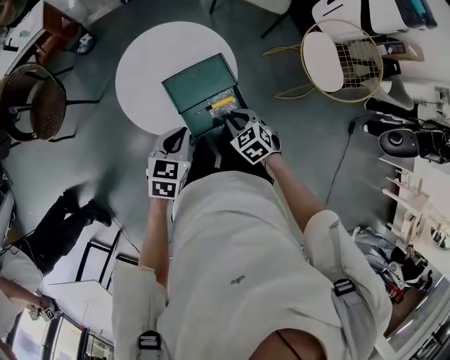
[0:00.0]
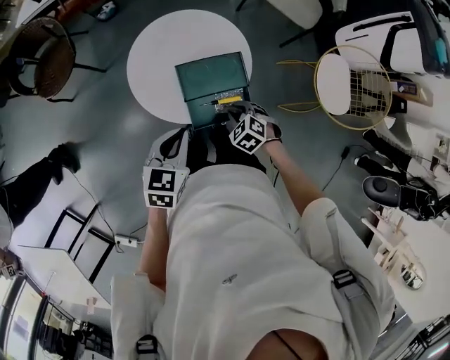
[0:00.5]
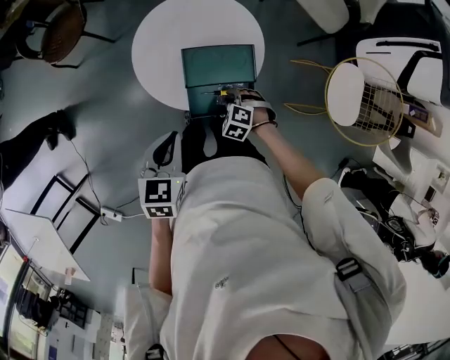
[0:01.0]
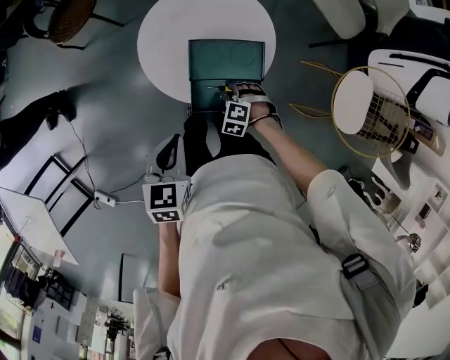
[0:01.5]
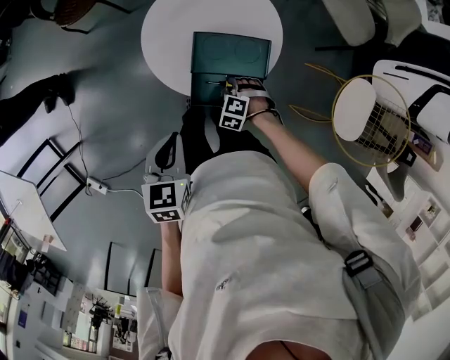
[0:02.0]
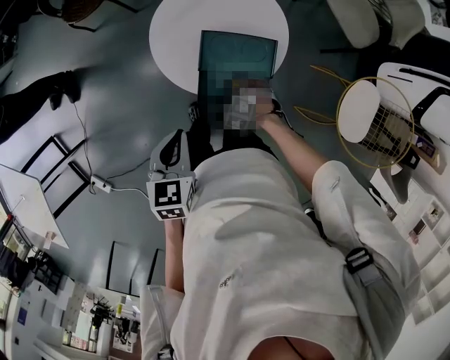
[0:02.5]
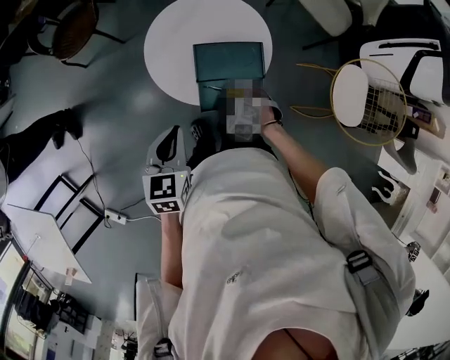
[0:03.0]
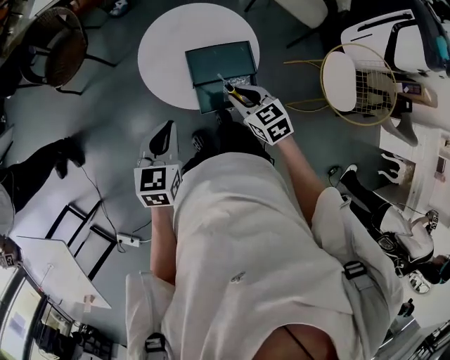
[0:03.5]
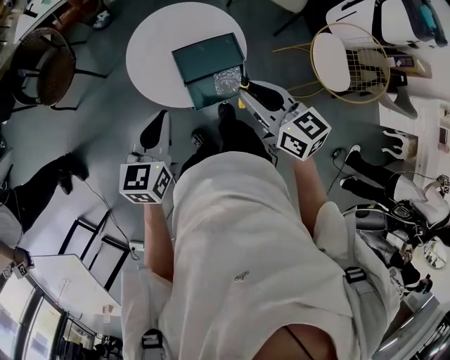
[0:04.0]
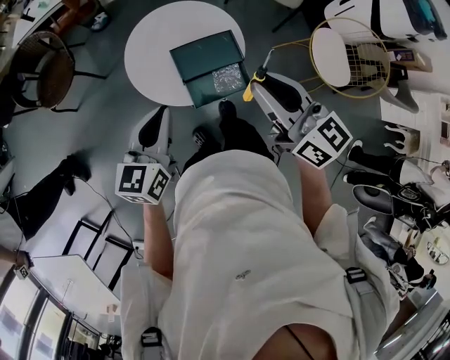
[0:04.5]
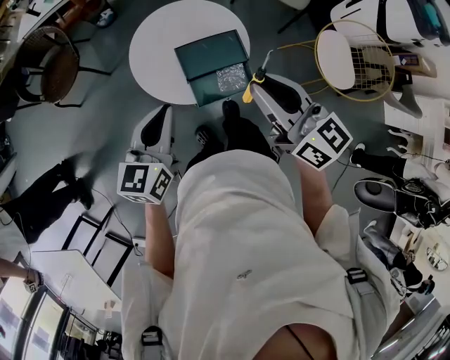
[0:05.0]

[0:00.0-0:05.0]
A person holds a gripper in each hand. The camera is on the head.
0:00.0 to 0:02.5: The right gripper heads downward, covering roughly 15 cm, and twists about 60 degrees counterclockwise, seen from behind; the left gripper moves approximately 10 cm, and rotates about 50 degrees.
0:02.5 to 0:05.0: The left gripper goes some 10 cm upward, and swivels about 40 degrees, while the right gripper moves upward, roughly 40 cm, and points its fingers roughly 70 degrees further upward.

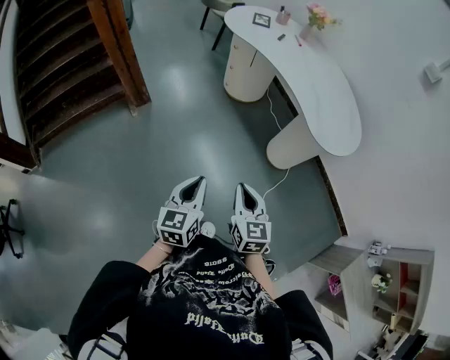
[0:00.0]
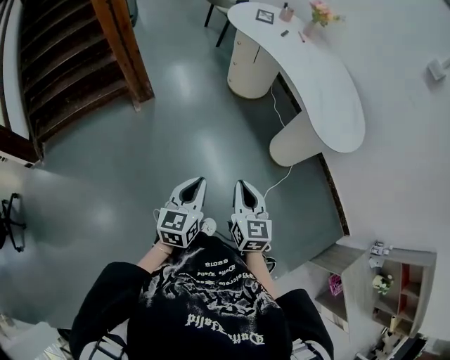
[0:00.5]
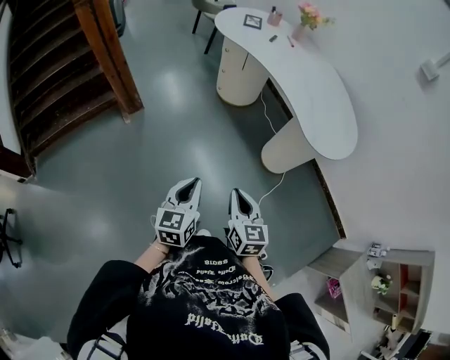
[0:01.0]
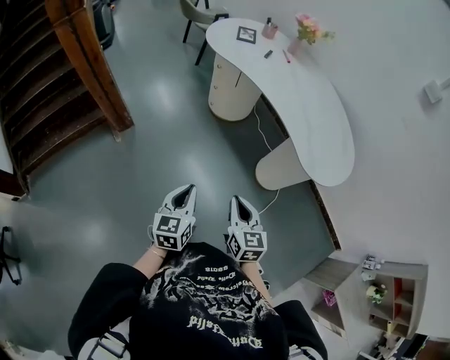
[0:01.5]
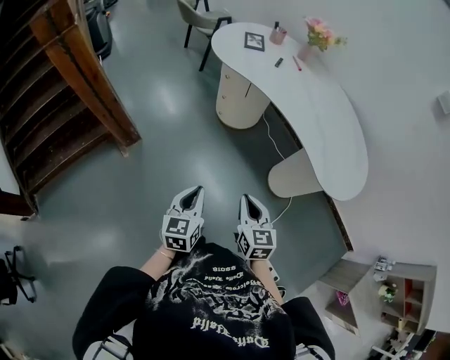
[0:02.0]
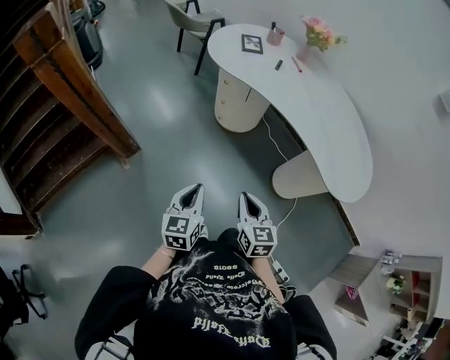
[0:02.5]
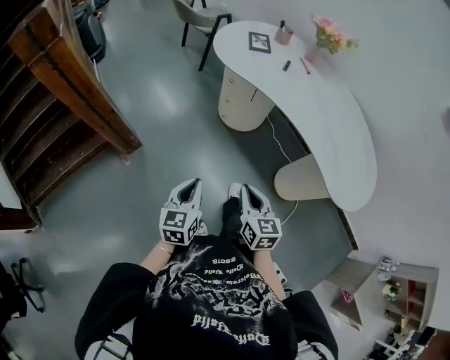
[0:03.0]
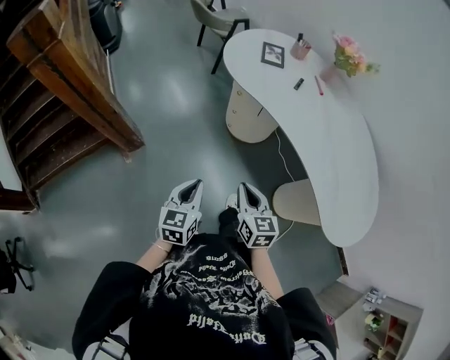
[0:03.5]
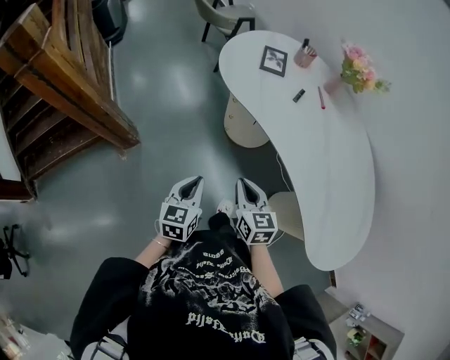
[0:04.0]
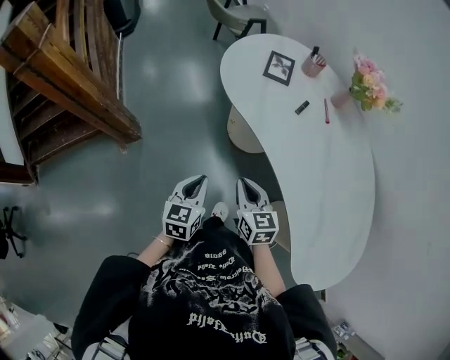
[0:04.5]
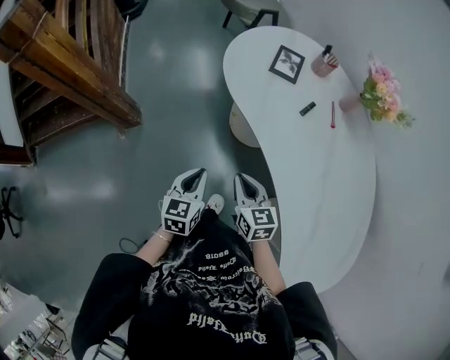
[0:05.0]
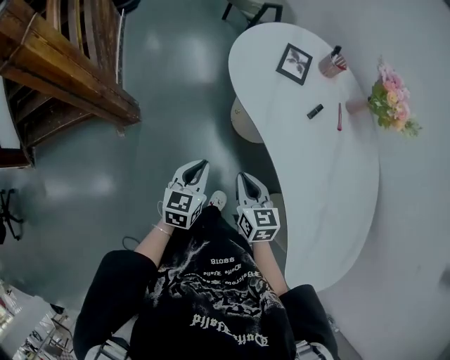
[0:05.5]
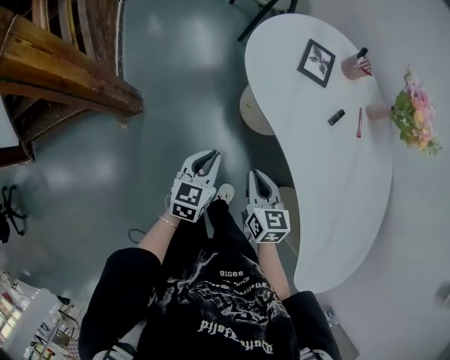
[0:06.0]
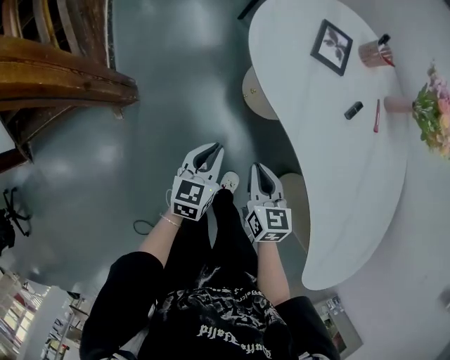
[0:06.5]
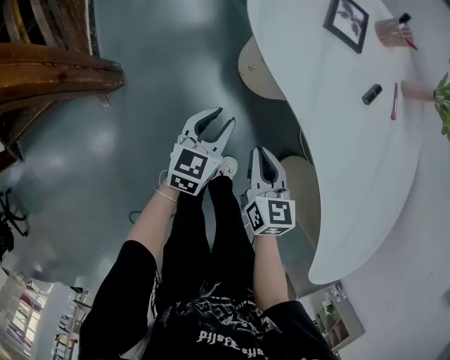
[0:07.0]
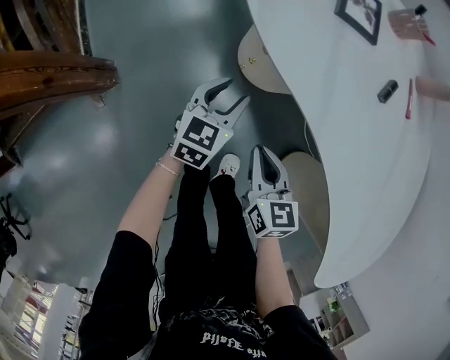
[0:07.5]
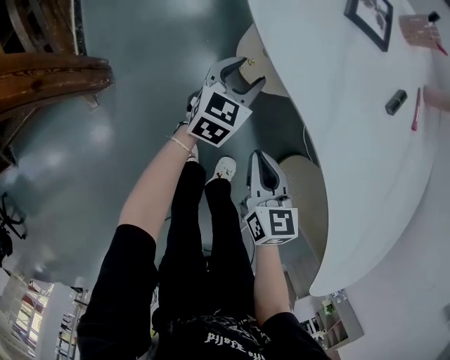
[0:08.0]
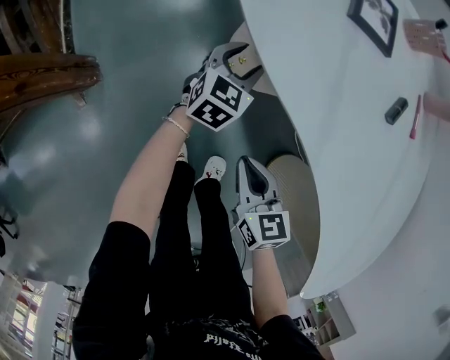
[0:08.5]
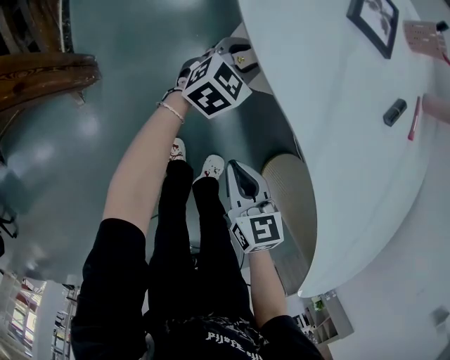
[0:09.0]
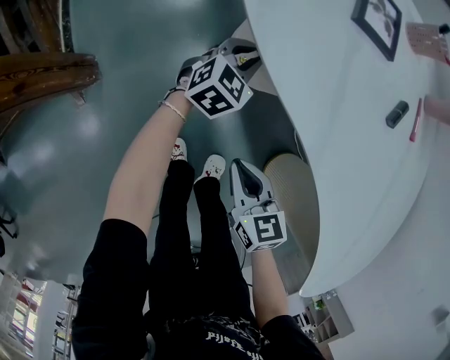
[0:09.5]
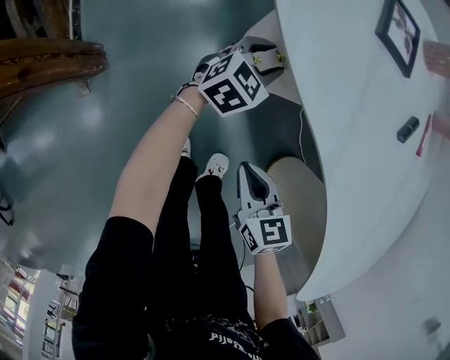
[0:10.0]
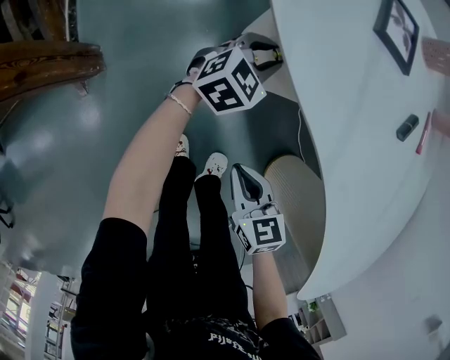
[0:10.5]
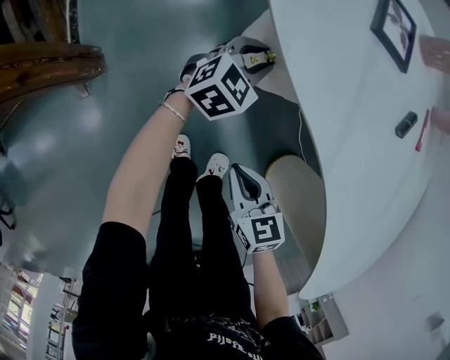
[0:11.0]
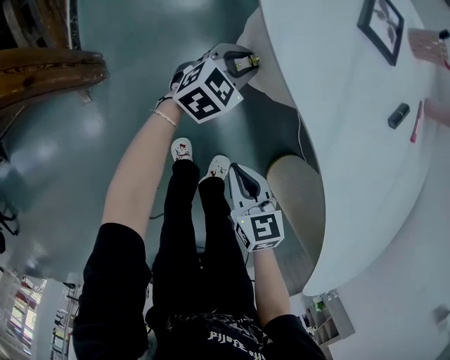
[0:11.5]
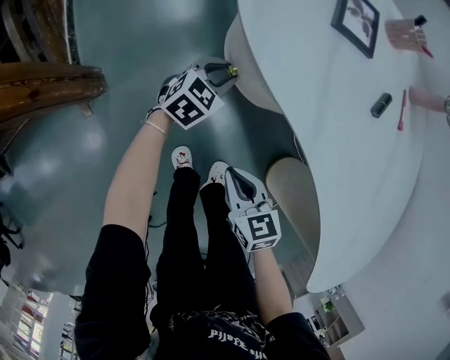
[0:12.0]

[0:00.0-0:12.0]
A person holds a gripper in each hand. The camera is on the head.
0:00.0 to 0:02.0: The two grippers go some 25 cm forward.
0:02.0 to 0:04.0: The two grippers go about 30 cm forward.
0:04.0 to 0:06.0: The grippers both shift forward by about 20 cm.
0:06.0 to 0:08.0: The right gripper shifts about 20 cm downward. Meanwhile the left gripper heads forward and downward, covering some 30 cm, and opens its fingers.
0:08.0 to 0:10.0: The left gripper goes approximately 5 cm forward, and closes, then reopens.
0:10.0 to 0:12.0: The left gripper goes approximately 5 cm to the left.

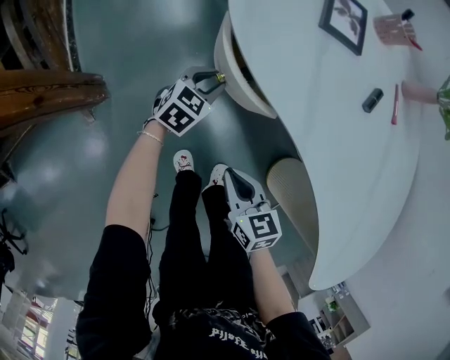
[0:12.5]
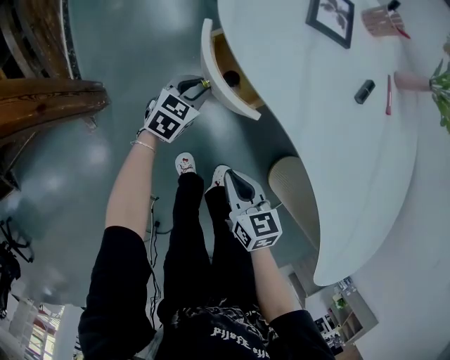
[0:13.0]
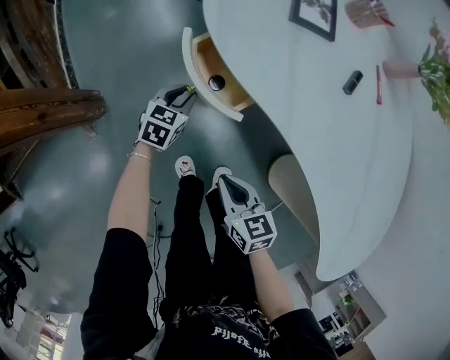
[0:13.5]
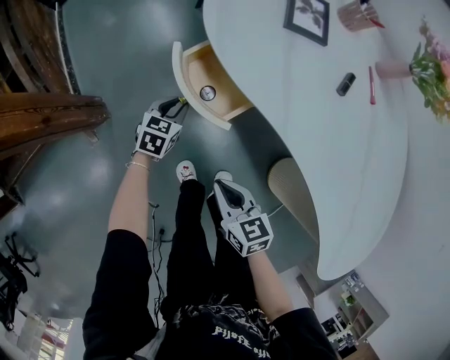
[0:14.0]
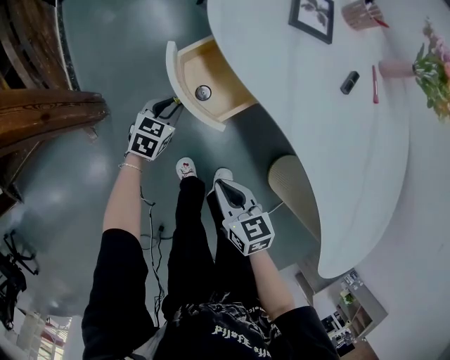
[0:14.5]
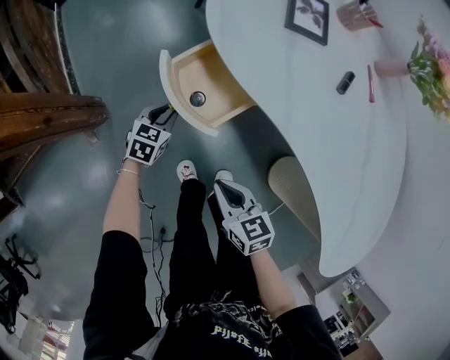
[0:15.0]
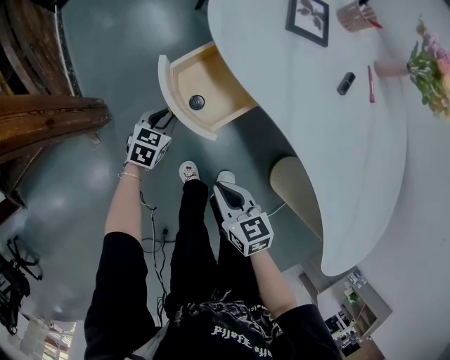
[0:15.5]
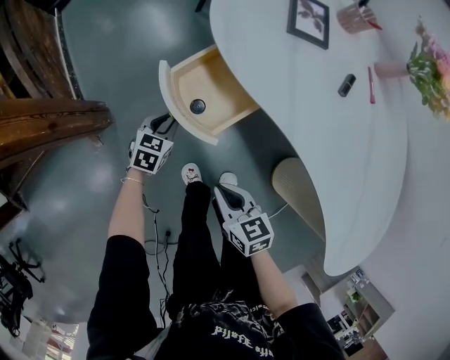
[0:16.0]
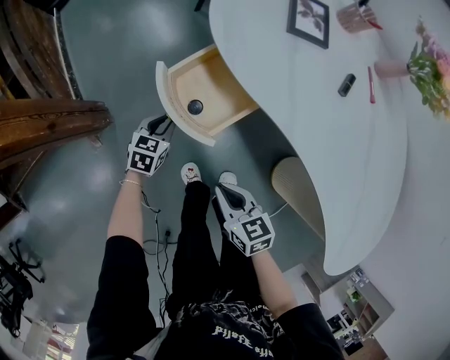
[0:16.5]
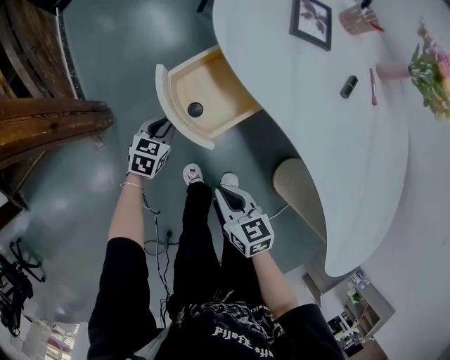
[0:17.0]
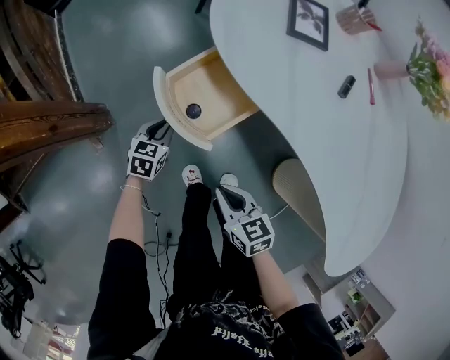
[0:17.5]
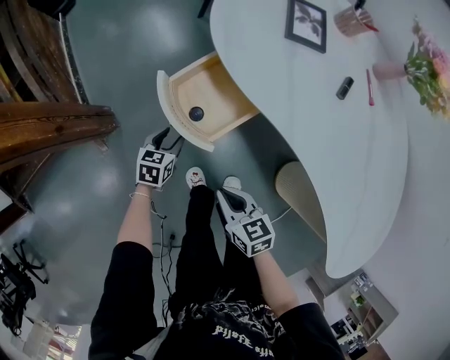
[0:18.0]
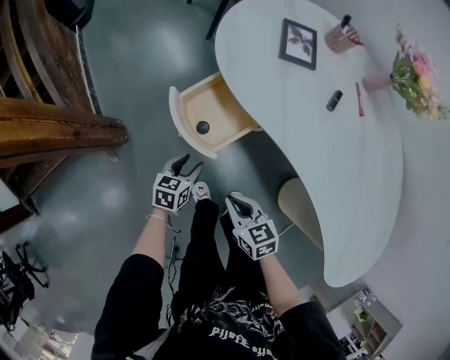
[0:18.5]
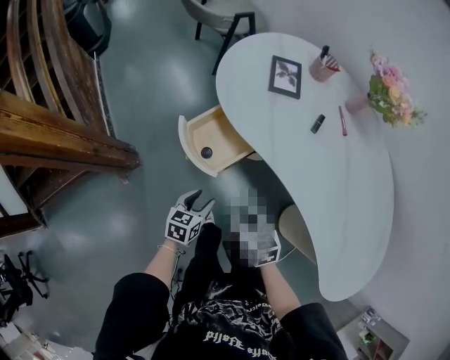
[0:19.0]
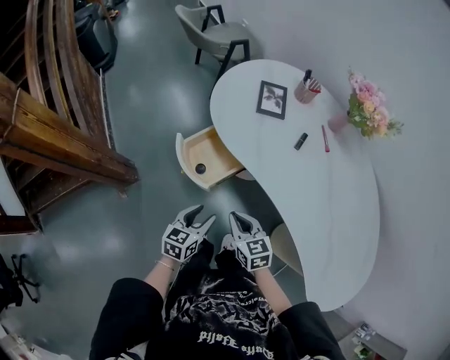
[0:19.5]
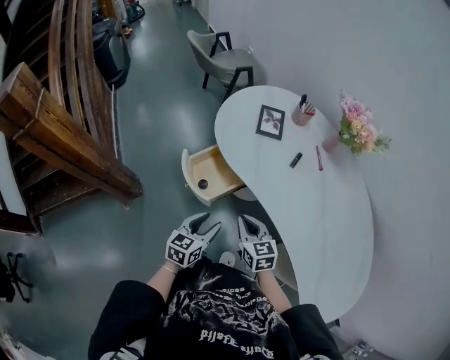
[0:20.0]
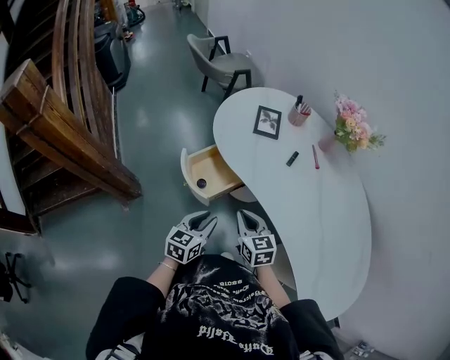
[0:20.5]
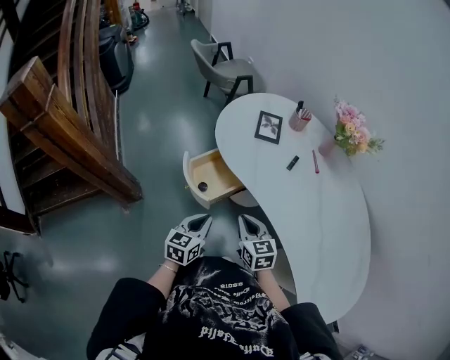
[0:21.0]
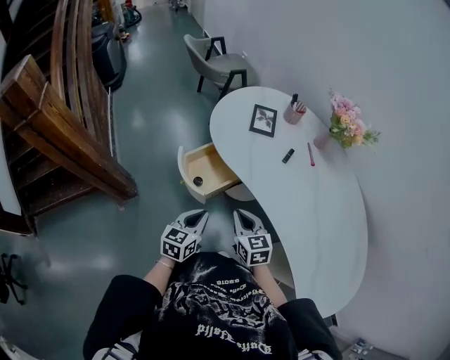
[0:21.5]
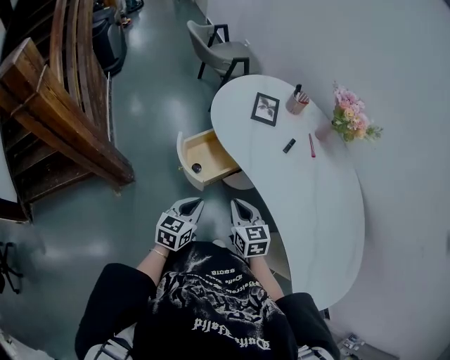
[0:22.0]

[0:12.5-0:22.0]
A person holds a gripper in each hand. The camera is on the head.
0:12.5 to 0:14.5: The right gripper changes place by about 5 cm. The left gripper goes roughly 10 cm to the left and backward.
0:14.5 to 0:16.5: The grippers stay close to where they were, moving slightly.
0:16.5 to 0:18.0: The left gripper opens.
0:18.0 to 0:20.0: The right gripper goes roughly 20 cm upward and to the right, while the left gripper moves upward, to the right and backward, some 35 cm, and swivels some 20 degrees.
0:20.0 to 0:22.0: The left gripper closes.
